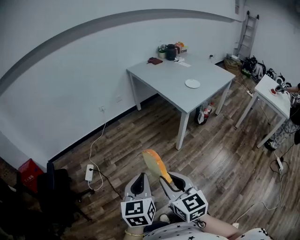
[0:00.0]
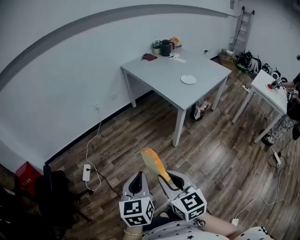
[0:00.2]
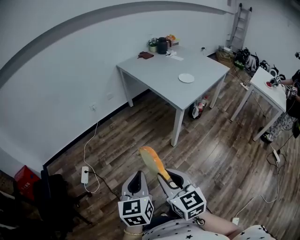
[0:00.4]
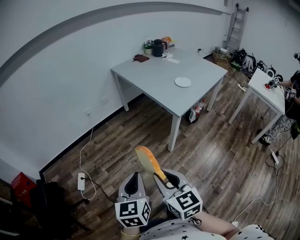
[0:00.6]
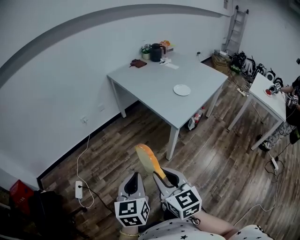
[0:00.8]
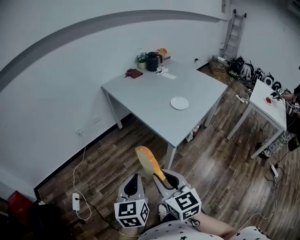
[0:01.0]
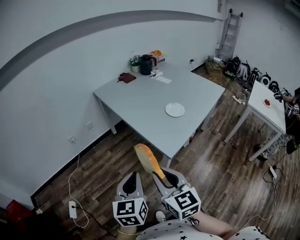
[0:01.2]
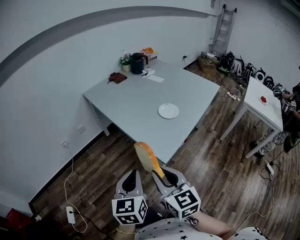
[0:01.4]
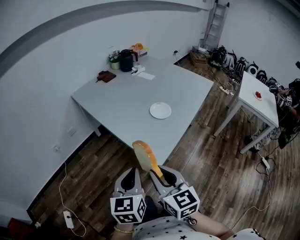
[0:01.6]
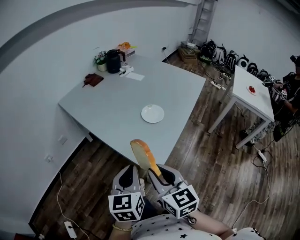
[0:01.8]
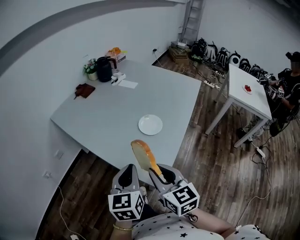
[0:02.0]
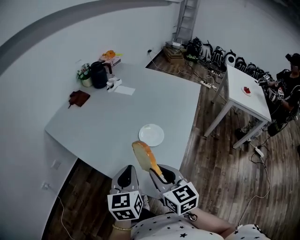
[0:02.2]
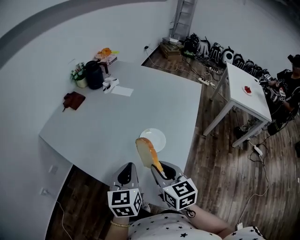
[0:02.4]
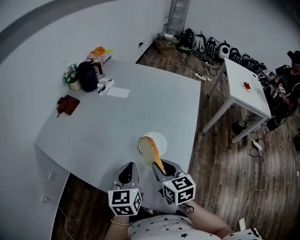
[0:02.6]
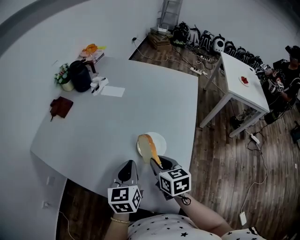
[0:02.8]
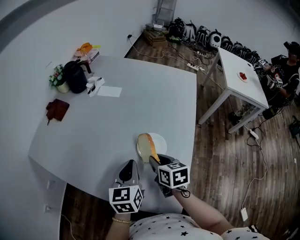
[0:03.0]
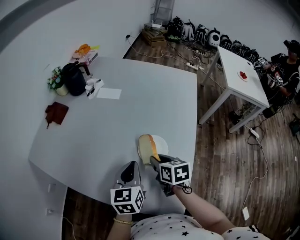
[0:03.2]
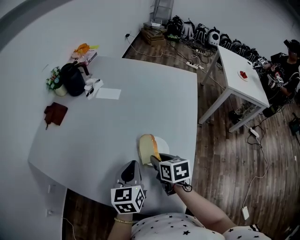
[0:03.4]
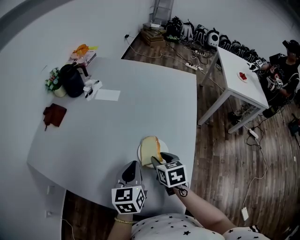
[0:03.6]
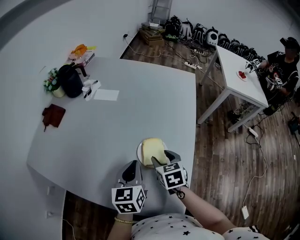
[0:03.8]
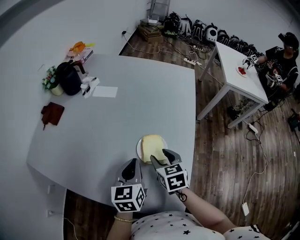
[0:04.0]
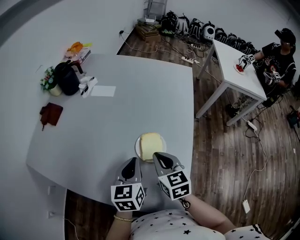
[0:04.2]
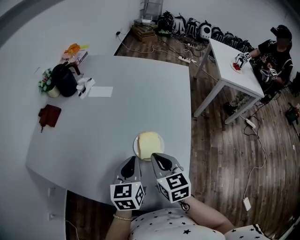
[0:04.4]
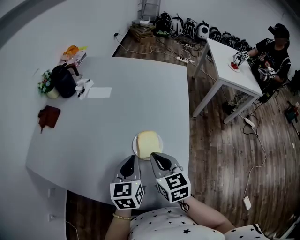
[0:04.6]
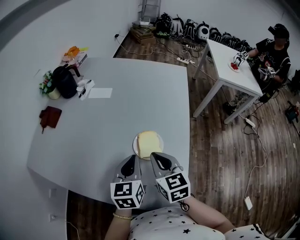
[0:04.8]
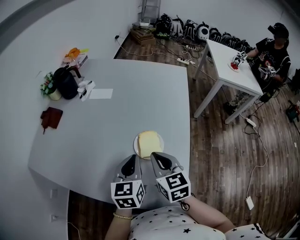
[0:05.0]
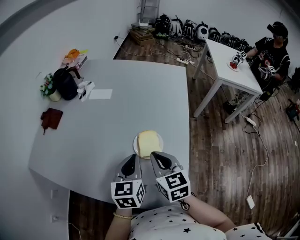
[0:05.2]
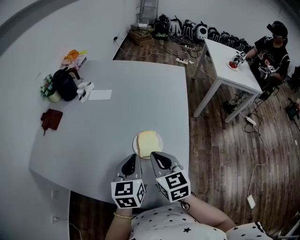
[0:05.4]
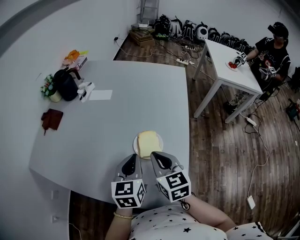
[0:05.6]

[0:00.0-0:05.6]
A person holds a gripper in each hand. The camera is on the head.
0:00.0 to 0:01.4: Both grippers are carried forward and to the right, some 50 cm.
0:01.4 to 0:02.8: The pair of grippers is taken roughly 40 cm. The left gripper changes its angle by approximately 30 degrees. Meanwhile the right gripper turns by some 40 degrees.
0:02.8 to 0:04.2: The right gripper opens and closes again.
0:04.2 to 0:05.6: The grippers make only small movements.

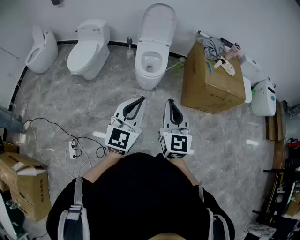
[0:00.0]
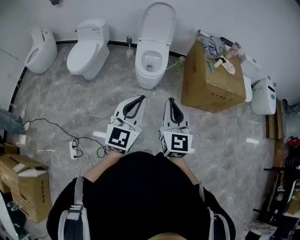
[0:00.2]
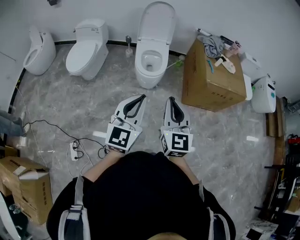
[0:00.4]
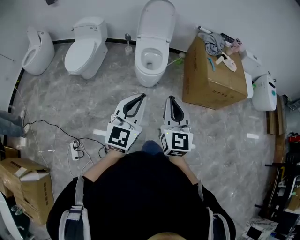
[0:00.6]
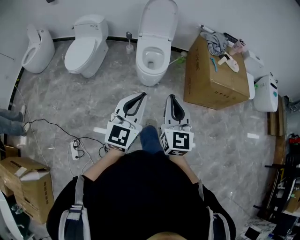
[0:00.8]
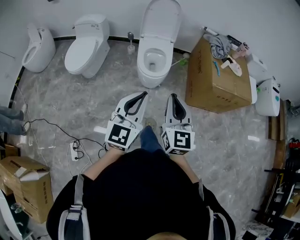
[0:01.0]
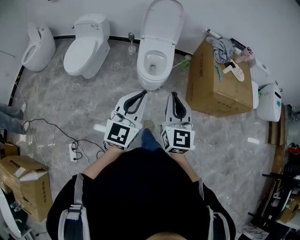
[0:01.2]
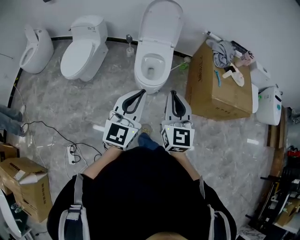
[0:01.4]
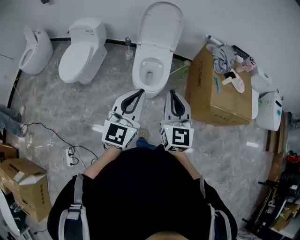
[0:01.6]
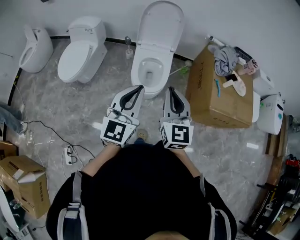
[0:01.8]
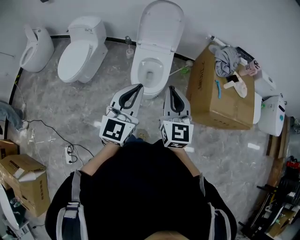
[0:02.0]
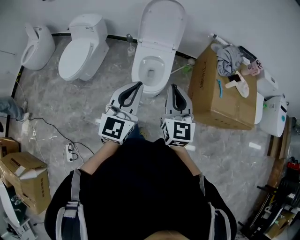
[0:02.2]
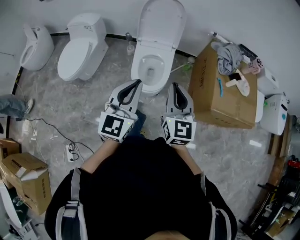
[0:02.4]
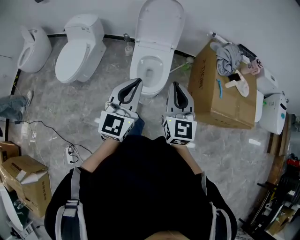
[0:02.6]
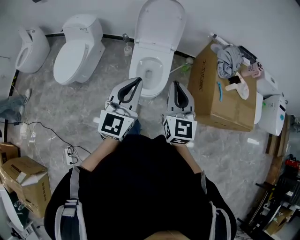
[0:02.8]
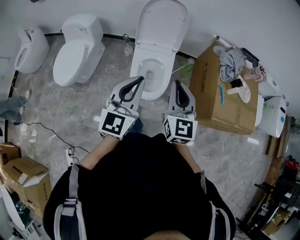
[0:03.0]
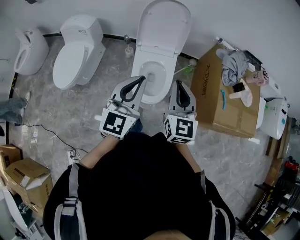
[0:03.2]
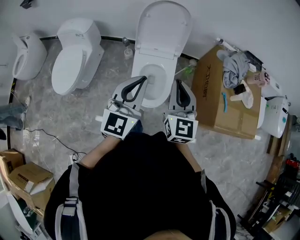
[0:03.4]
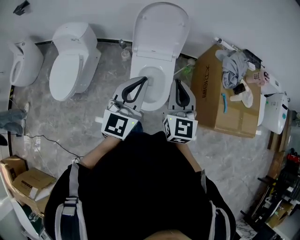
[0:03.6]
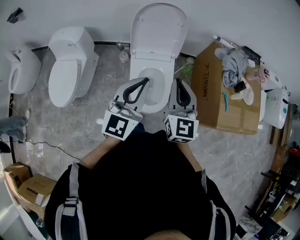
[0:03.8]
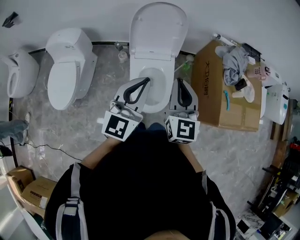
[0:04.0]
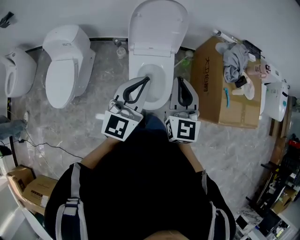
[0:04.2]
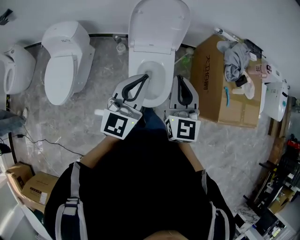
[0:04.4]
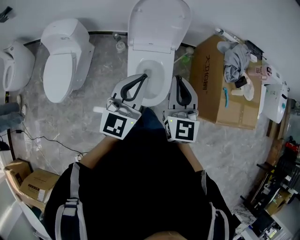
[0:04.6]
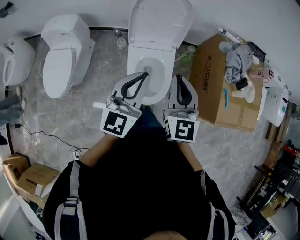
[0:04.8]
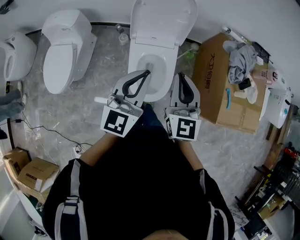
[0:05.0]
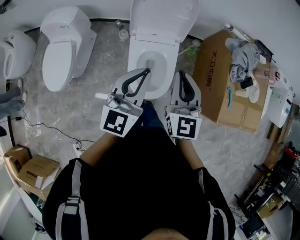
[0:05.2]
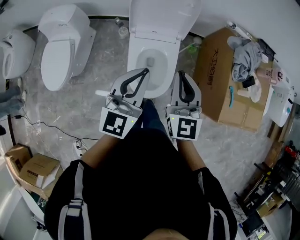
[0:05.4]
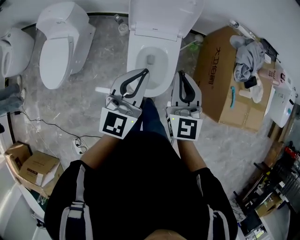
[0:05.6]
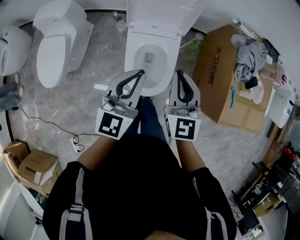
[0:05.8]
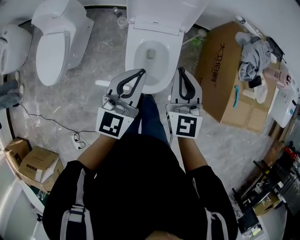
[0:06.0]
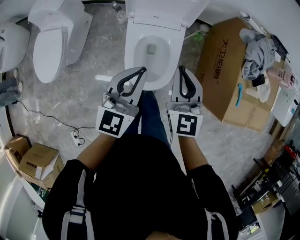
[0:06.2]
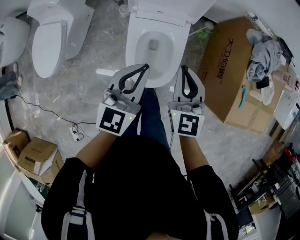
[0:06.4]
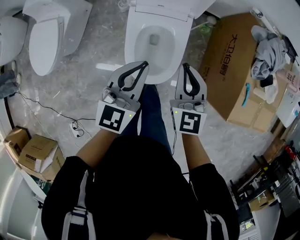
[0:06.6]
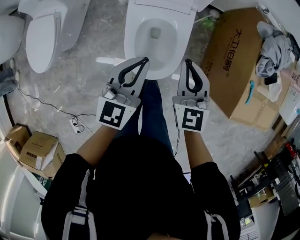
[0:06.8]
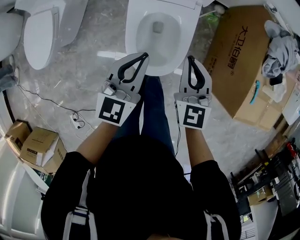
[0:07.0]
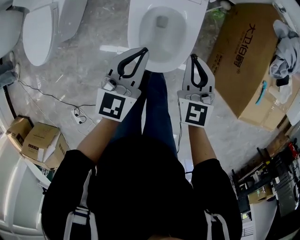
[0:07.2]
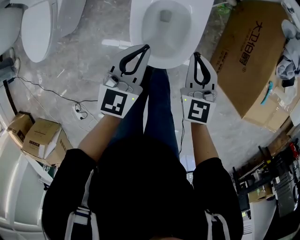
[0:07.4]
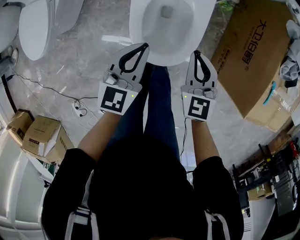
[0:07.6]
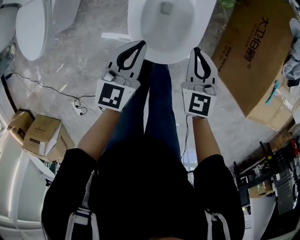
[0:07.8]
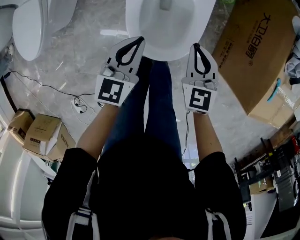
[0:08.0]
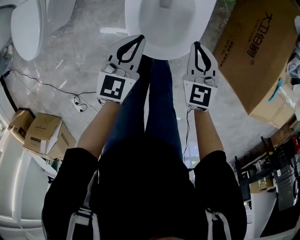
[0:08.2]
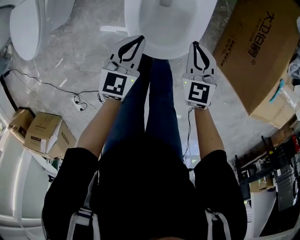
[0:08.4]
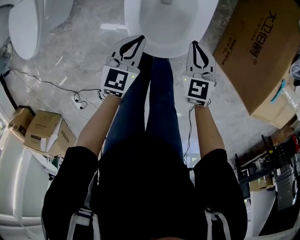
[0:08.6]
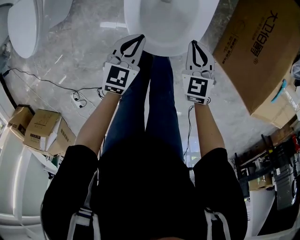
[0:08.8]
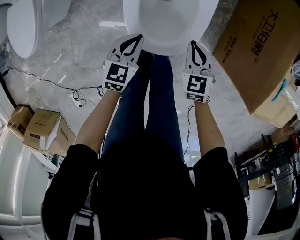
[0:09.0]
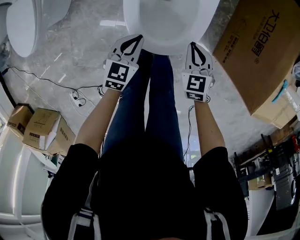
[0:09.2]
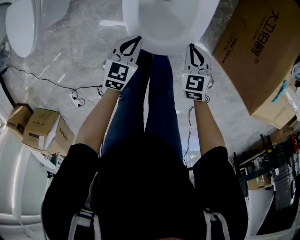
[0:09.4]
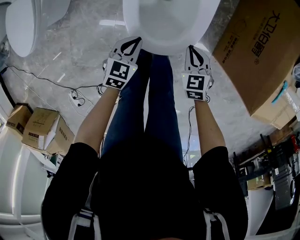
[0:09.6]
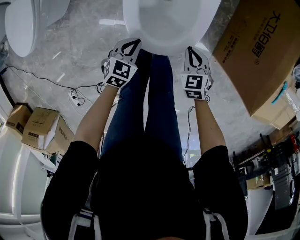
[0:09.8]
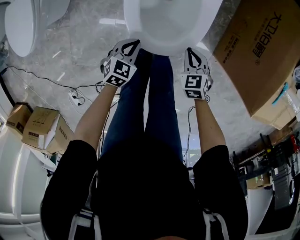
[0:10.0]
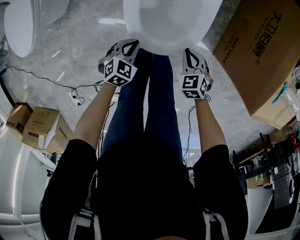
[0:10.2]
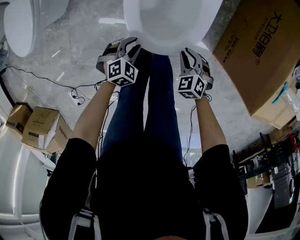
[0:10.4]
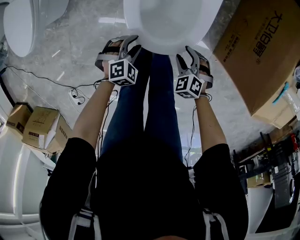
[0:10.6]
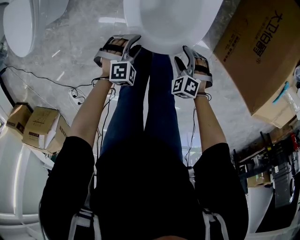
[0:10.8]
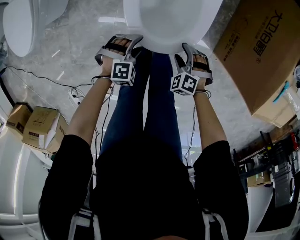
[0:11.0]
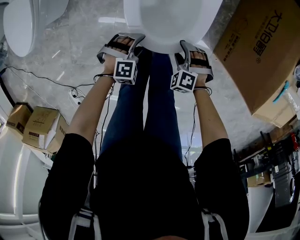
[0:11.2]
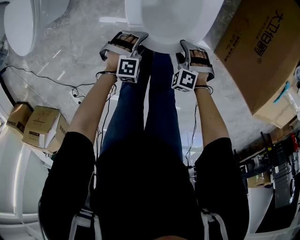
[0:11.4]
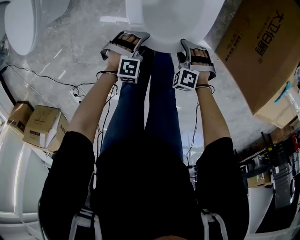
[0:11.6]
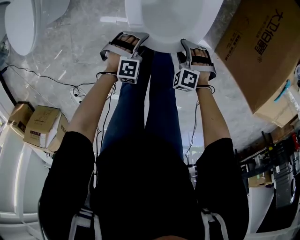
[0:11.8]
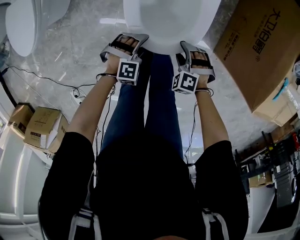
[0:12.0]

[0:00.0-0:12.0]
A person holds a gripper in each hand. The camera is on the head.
0:00.0 to 0:01.6: Both grippers travel together forward, approximately 30 cm.
0:01.6 to 0:03.0: Both grippers move forward, some 20 cm.
0:03.0 to 0:04.4: The right gripper shifts approximately 15 cm forward and to the left, while the left gripper is displaced forward by approximately 15 cm.
0:04.4 to 0:06.0: The right gripper shifts approximately 15 cm downward and forward, while the left gripper goes approximately 10 cm downward.
0:06.0 to 0:07.6: The two grippers go approximately 25 cm downward. The right gripper swivels about 20 degrees.
0:07.6 to 0:09.0: Both grippers travel together downward, about 15 cm.
0:09.0 to 0:10.4: Both grippers travel together downward and backward, some 10 cm. The left gripper rotates some 40 degrees, and opens up. The right gripper changes its angle by some 30 degrees.
0:10.4 to 0:12.0: The right gripper changes its angle by some 30 degrees, and opens up. Meanwhile the left gripper changes its angle by about 40 degrees, and opens.

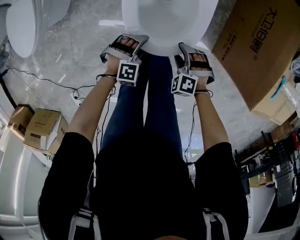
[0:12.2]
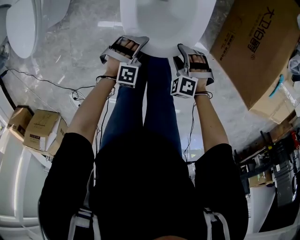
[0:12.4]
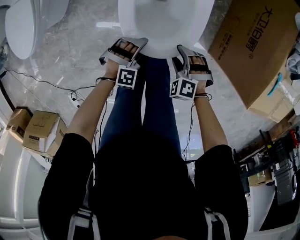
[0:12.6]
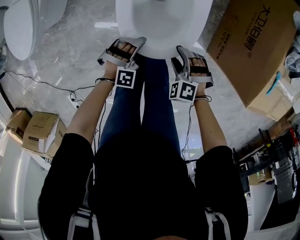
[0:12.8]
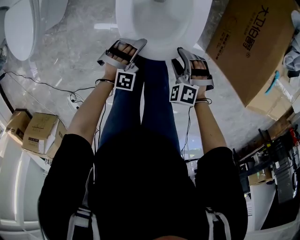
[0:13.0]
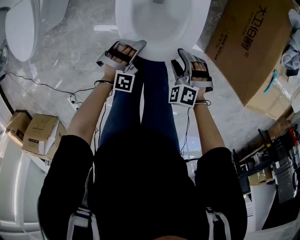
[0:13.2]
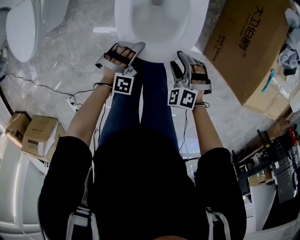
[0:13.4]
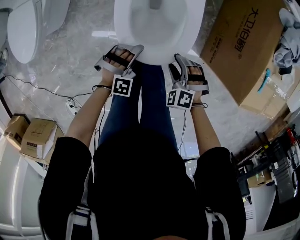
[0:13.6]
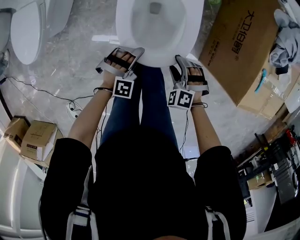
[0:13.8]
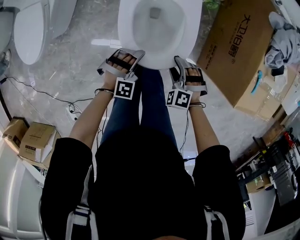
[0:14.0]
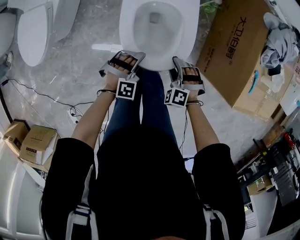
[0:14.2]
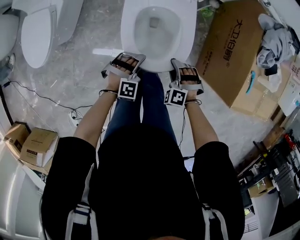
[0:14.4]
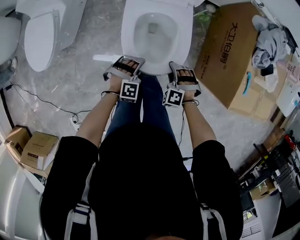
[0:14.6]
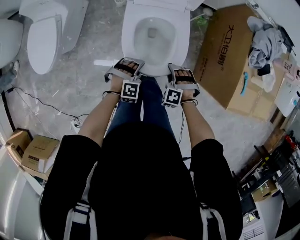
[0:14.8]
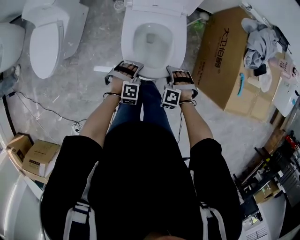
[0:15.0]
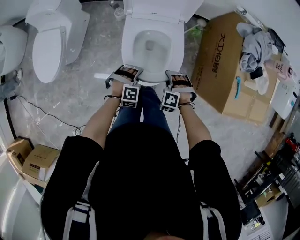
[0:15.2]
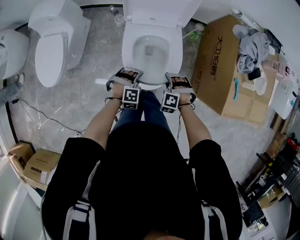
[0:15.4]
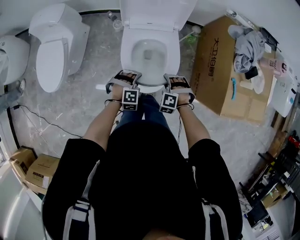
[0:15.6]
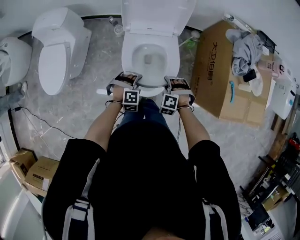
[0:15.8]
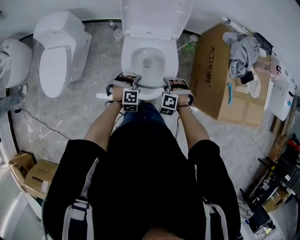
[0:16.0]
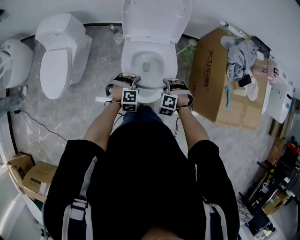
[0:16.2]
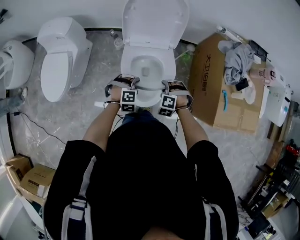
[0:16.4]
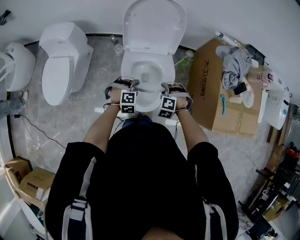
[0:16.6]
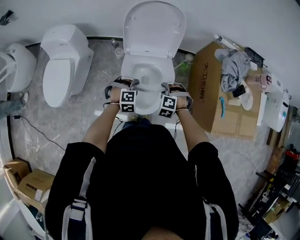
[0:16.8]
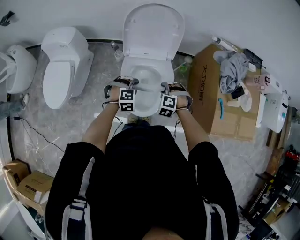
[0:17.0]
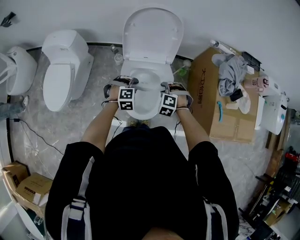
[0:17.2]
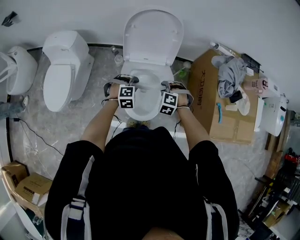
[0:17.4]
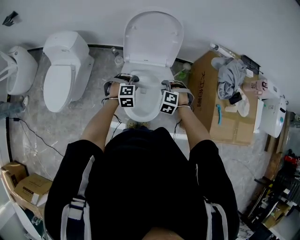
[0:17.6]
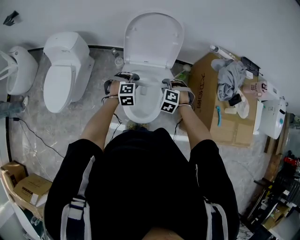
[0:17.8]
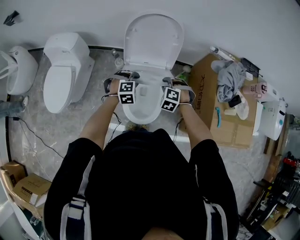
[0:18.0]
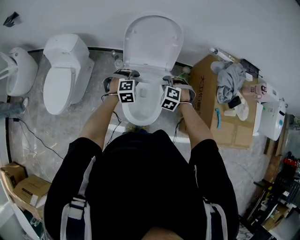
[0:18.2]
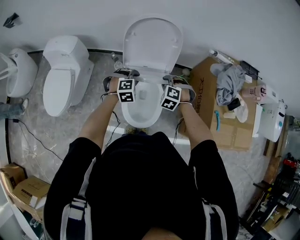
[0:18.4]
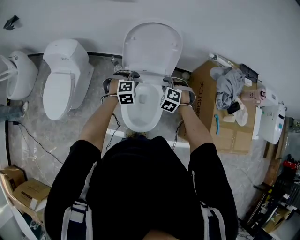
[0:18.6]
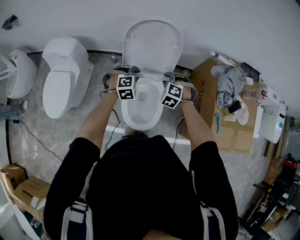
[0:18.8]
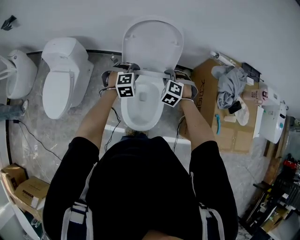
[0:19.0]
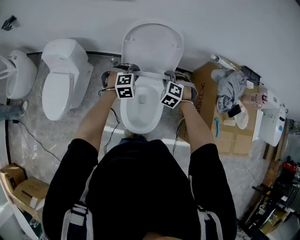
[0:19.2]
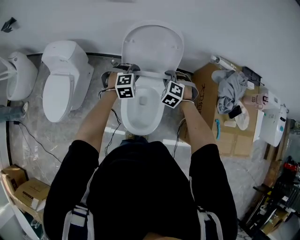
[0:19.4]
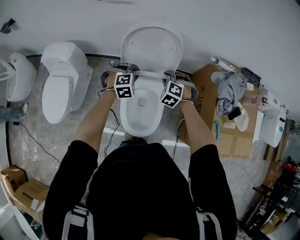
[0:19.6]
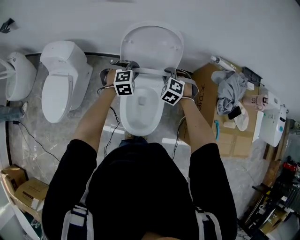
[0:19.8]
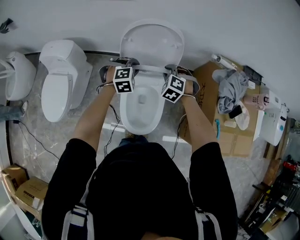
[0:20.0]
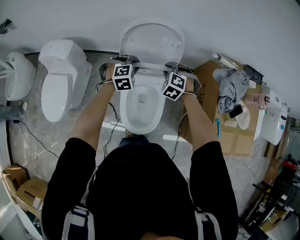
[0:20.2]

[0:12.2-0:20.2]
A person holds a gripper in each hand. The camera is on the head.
0:12.2 to 0:13.8: Both grippers move upward, approximately 10 cm. The left gripper rotates roughly 20 degrees, and closes.
0:13.8 to 0:15.4: The left gripper goes some 10 cm upward; the right gripper goes about 10 cm upward and forward.
0:15.4 to 0:17.0: The two grippers go about 10 cm upward and forward.
0:17.0 to 0:18.6: Both grippers move forward and upward, some 15 cm.
0:18.6 to 0:20.2: The two grippers go approximately 10 cm forward.
